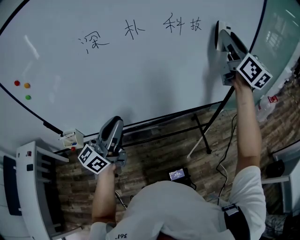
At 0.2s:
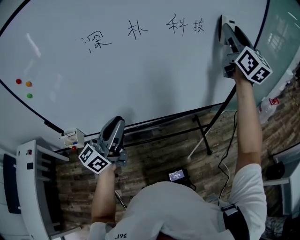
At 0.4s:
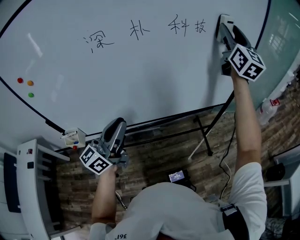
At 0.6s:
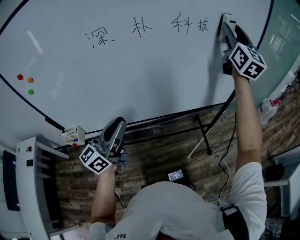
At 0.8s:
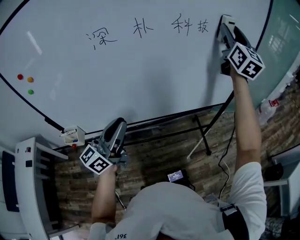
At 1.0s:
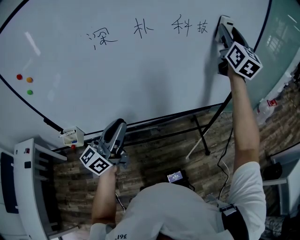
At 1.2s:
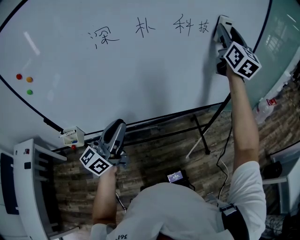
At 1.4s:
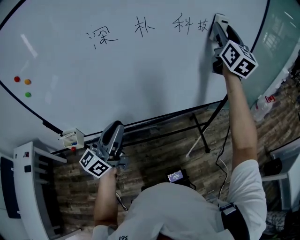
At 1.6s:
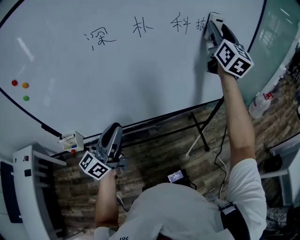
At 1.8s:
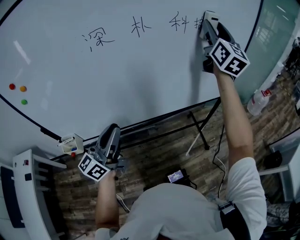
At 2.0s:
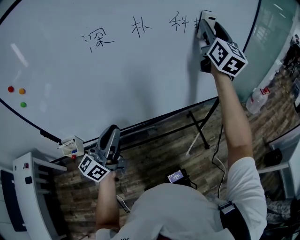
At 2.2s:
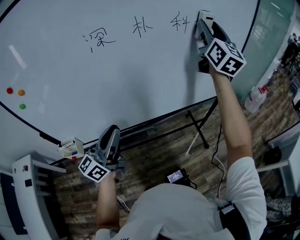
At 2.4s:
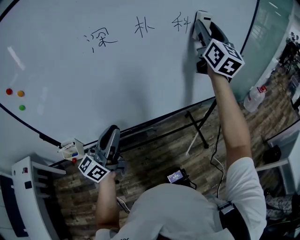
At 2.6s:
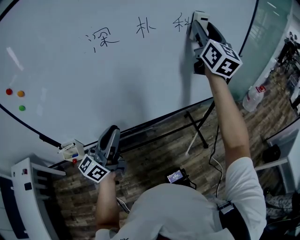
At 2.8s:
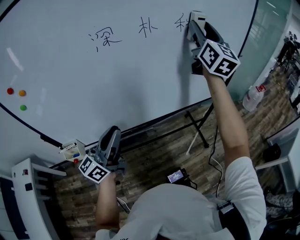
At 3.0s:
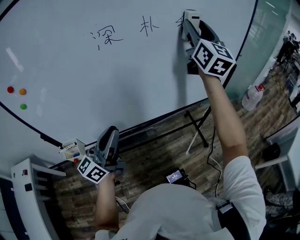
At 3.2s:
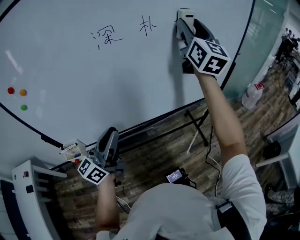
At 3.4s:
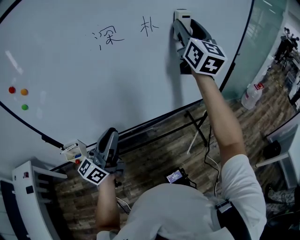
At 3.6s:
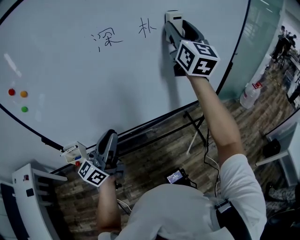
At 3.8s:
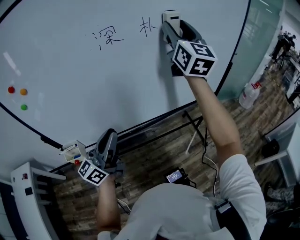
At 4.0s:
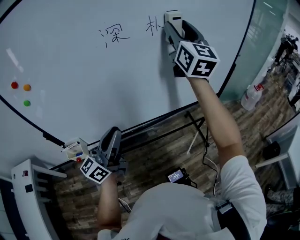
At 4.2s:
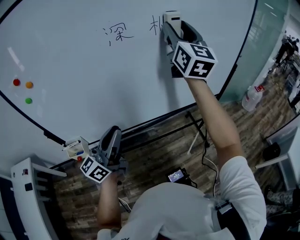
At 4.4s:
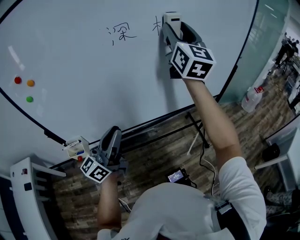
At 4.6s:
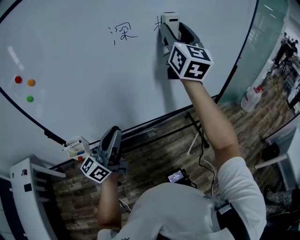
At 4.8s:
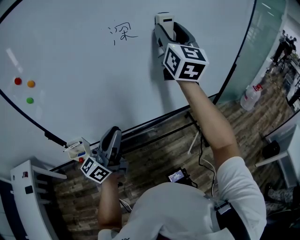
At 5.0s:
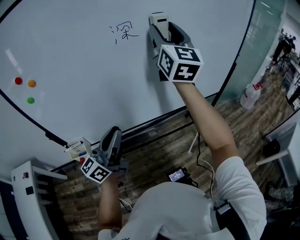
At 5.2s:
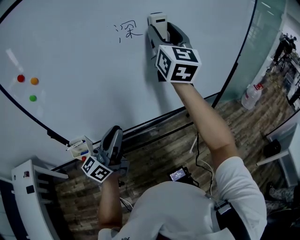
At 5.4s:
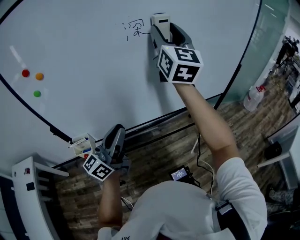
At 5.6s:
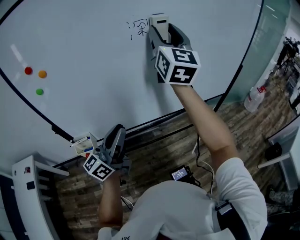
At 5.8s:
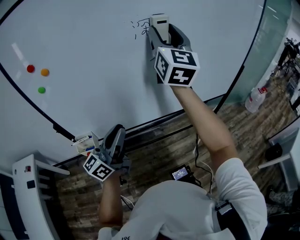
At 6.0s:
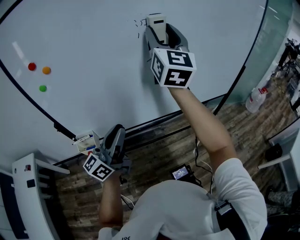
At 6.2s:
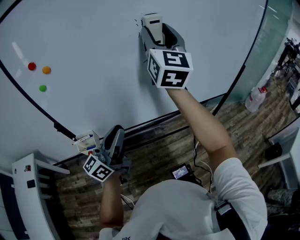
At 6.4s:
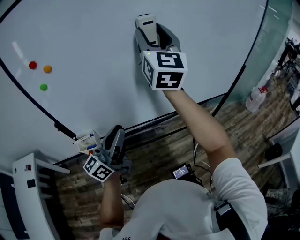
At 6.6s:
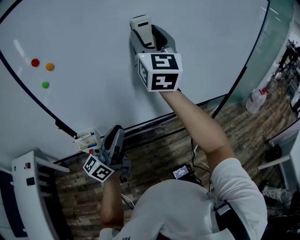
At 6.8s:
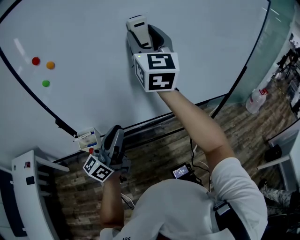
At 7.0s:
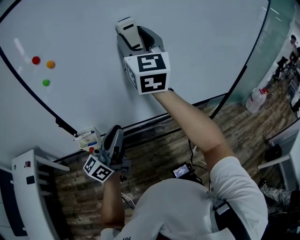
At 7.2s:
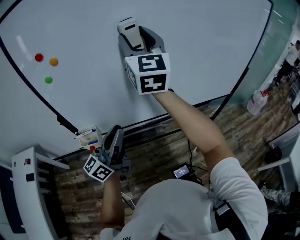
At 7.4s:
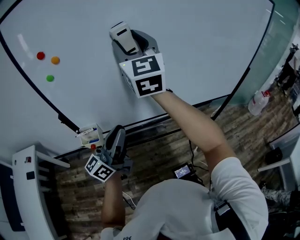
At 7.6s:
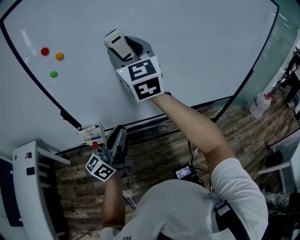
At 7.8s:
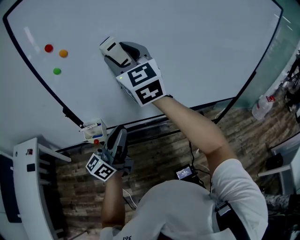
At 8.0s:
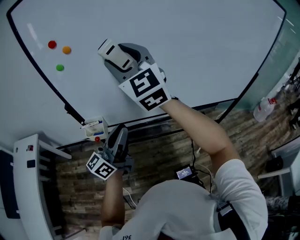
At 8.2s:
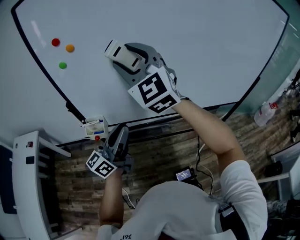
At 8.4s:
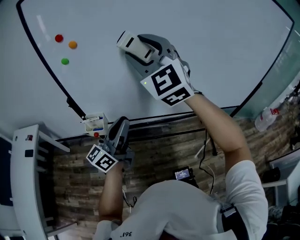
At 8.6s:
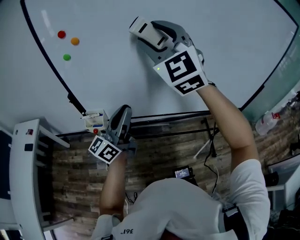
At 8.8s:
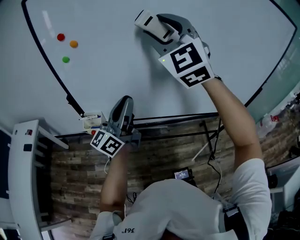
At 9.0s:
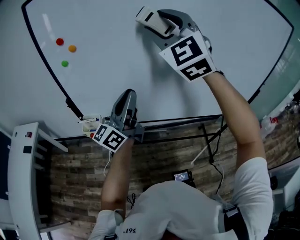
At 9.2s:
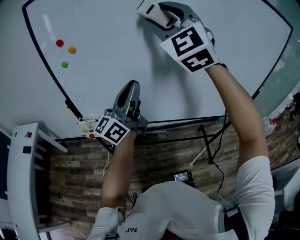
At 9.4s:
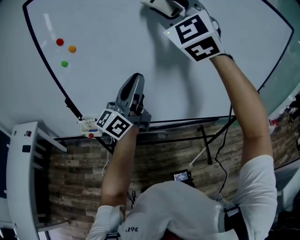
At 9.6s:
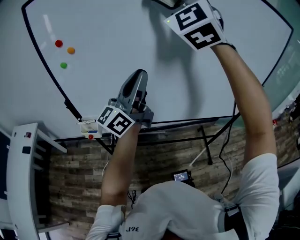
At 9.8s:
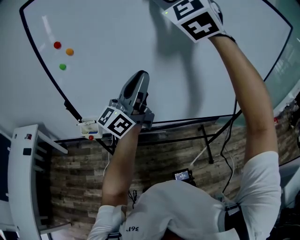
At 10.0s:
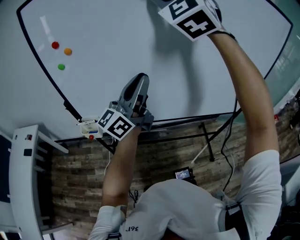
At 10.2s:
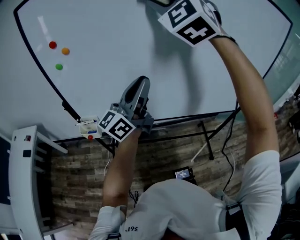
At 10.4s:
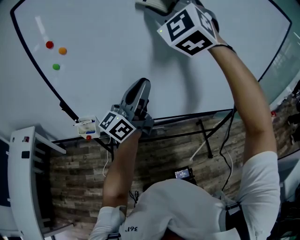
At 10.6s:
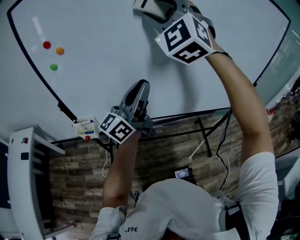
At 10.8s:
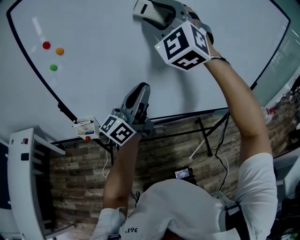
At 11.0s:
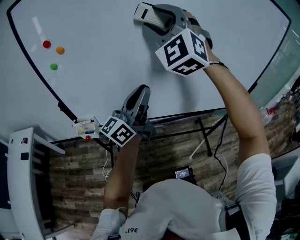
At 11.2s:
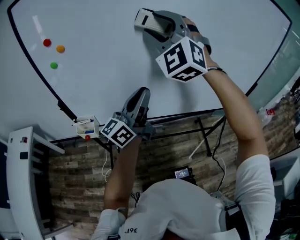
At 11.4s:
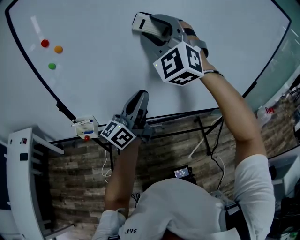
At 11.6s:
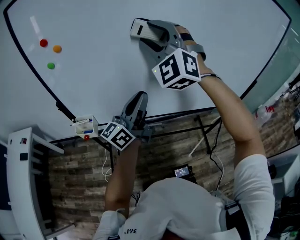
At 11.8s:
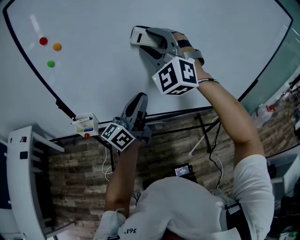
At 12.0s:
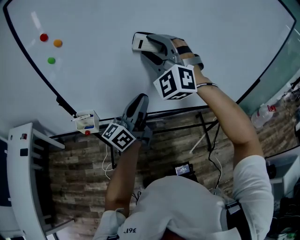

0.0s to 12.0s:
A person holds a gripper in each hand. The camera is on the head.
0.0s to 1.6s: The right gripper travels to the left by approximately 5 cm.
1.6s to 3.0s: The right gripper shifts approximately 10 cm to the left and backward. The left gripper heads to the left, covering some 5 cm.
3.0s to 4.4s: The right gripper goes approximately 10 cm to the left.
4.4s to 6.0s: The left gripper travels to the left by about 5 cm. Meanwhile the right gripper heads to the left and backward, covering some 15 cm.
6.0s to 7.6s: The right gripper shifts about 15 cm to the left, and swivels roughly 30 degrees.
7.6s to 9.0s: The right gripper heads upward and to the right, covering about 10 cm, and rotates about 40 degrees. The left gripper travels upward, to the right and forward by approximately 15 cm.
9.0s to 10.4s: The left gripper shifts roughly 5 cm to the right.
10.4s to 12.0s: The left gripper heads downward, covering some 10 cm. Meanwhile the right gripper travels downward by roughly 20 cm.

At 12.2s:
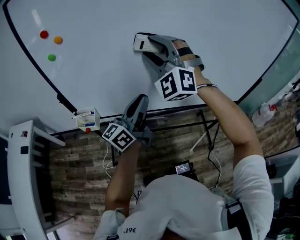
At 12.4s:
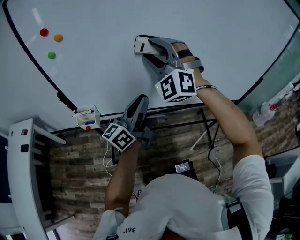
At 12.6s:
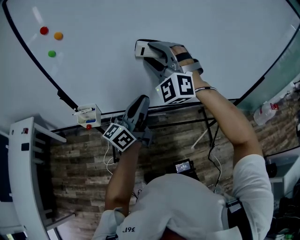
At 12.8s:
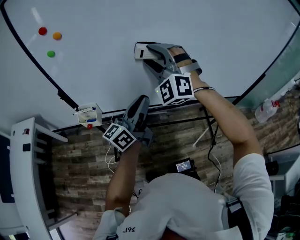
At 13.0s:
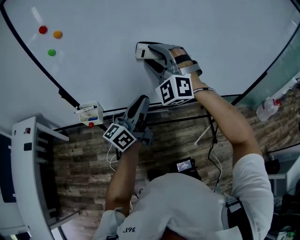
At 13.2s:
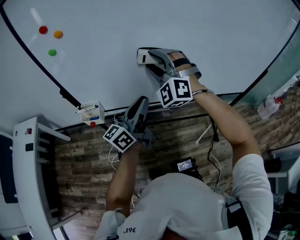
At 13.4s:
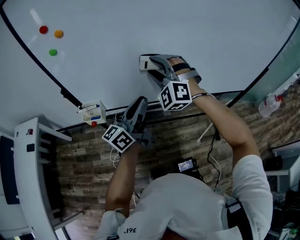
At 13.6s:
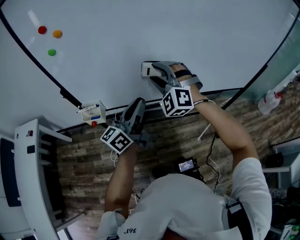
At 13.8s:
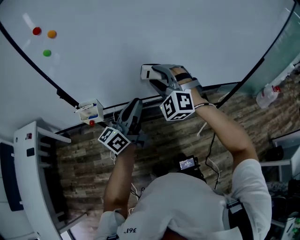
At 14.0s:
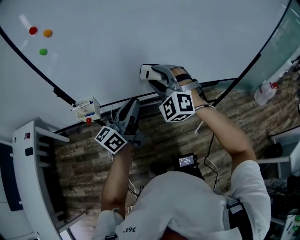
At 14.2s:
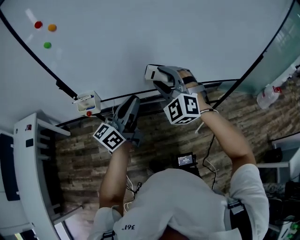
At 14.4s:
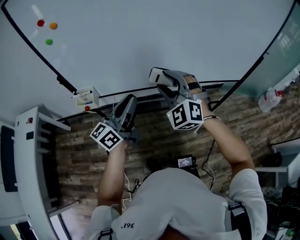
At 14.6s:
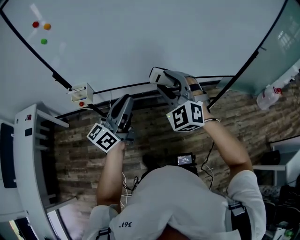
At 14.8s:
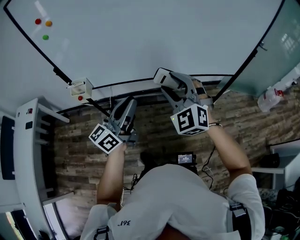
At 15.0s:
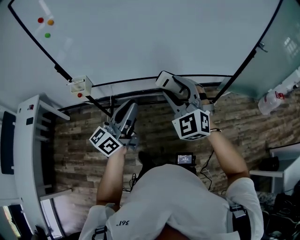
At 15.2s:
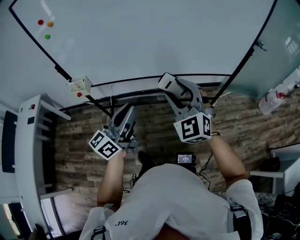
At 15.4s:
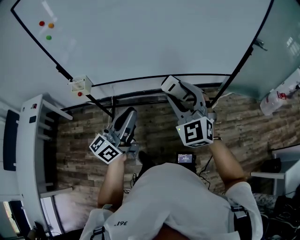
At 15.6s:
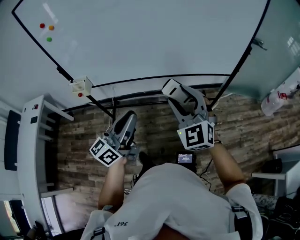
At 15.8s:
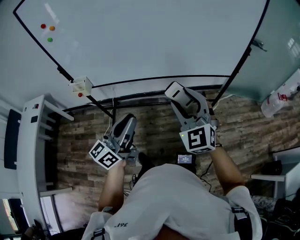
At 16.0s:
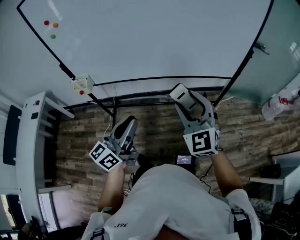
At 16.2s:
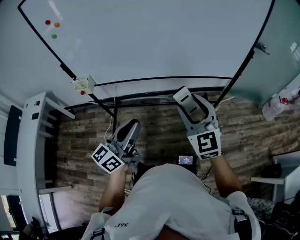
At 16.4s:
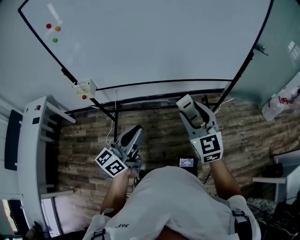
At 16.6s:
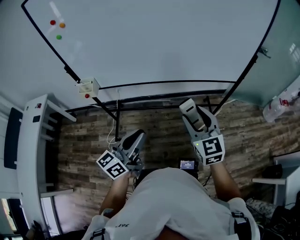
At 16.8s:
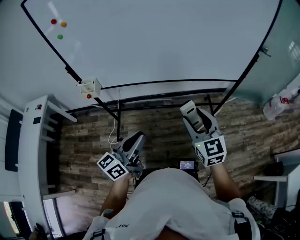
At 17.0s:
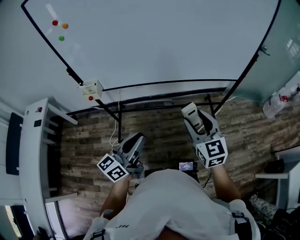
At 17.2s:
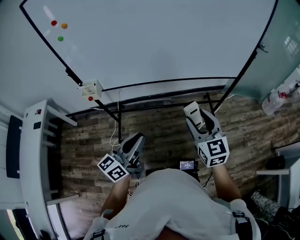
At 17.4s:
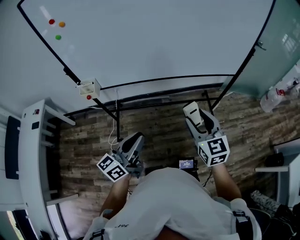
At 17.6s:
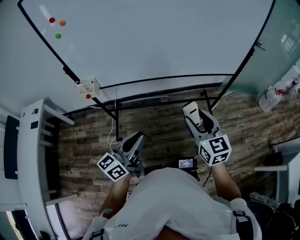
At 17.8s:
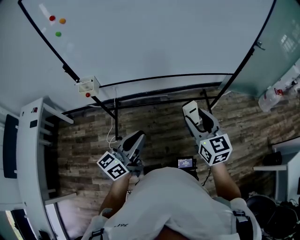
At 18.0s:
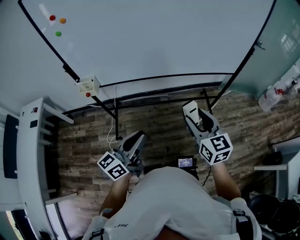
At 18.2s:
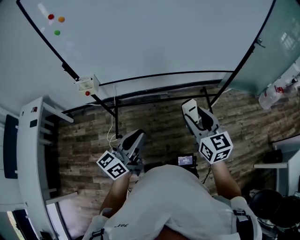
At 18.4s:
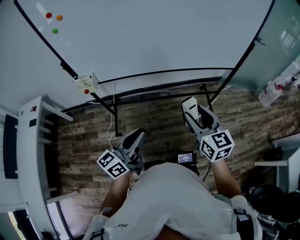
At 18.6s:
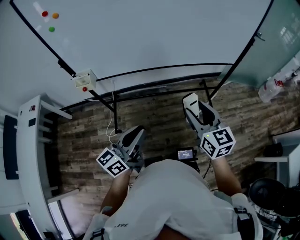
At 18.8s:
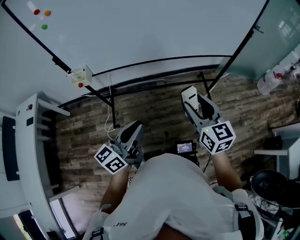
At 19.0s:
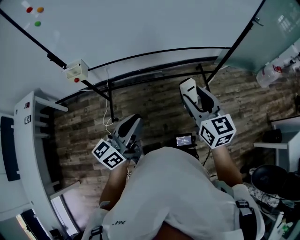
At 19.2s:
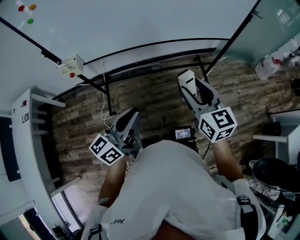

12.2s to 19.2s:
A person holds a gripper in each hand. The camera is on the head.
12.2s to 13.6s: The left gripper moves some 5 cm. The right gripper travels downward by about 15 cm.
13.6s to 15.0s: The left gripper goes some 20 cm backward and to the right. Meanwhile the right gripper moves to the right and backward, roughly 30 cm, and changes its angle by approximately 20 degrees.
15.0s to 16.4s: The right gripper is displaced to the right and backward by roughly 10 cm, and rotates some 30 degrees. Meanwhile the left gripper heads backward and to the right, covering approximately 10 cm.
16.4s to 17.8s: The left gripper shifts about 5 cm to the left. The right gripper ends up about 5 cm from where it was.
17.8s to 19.2s: The grippers make only small movements.

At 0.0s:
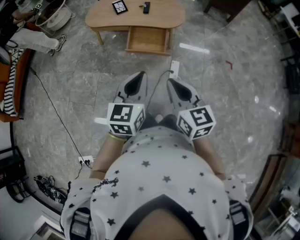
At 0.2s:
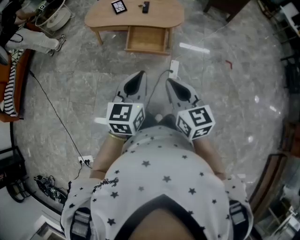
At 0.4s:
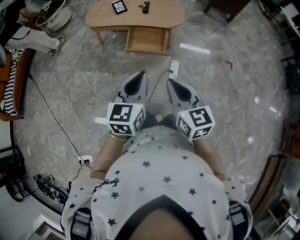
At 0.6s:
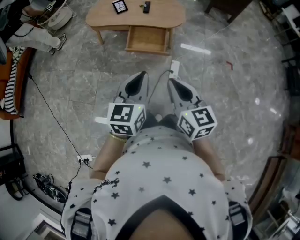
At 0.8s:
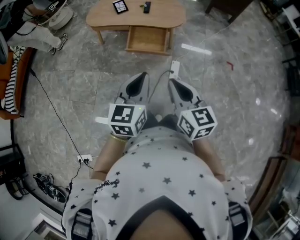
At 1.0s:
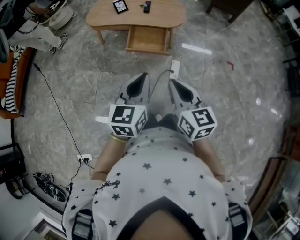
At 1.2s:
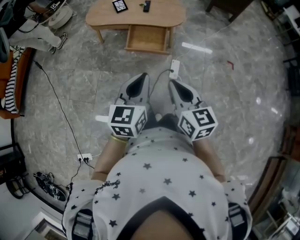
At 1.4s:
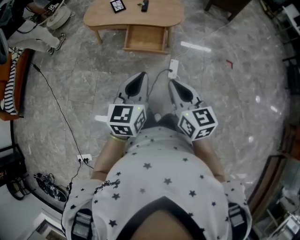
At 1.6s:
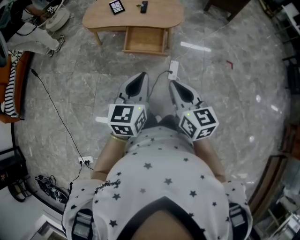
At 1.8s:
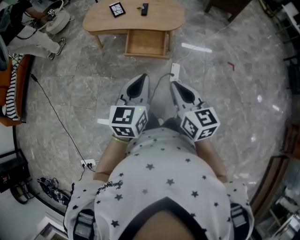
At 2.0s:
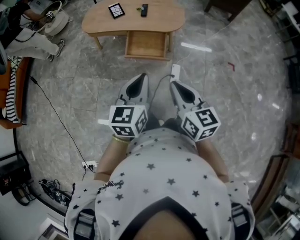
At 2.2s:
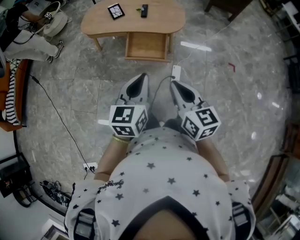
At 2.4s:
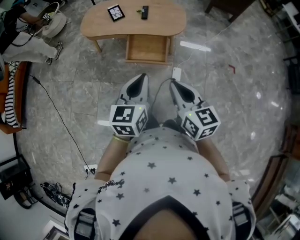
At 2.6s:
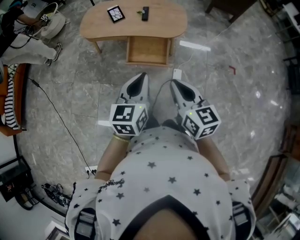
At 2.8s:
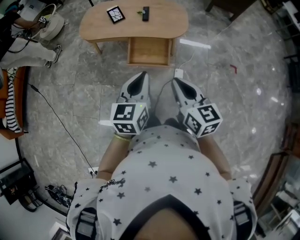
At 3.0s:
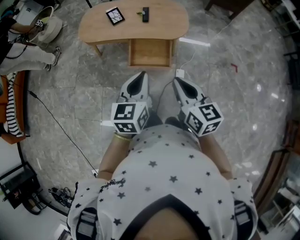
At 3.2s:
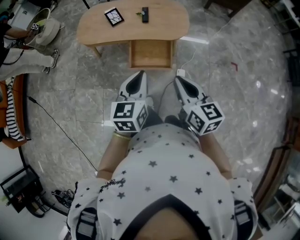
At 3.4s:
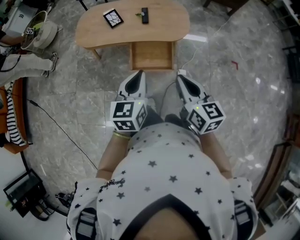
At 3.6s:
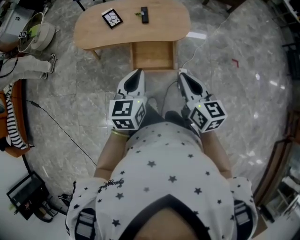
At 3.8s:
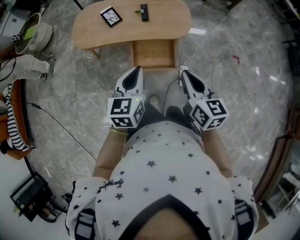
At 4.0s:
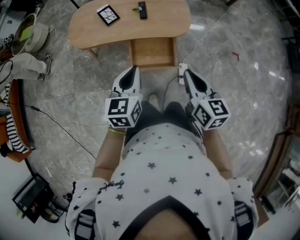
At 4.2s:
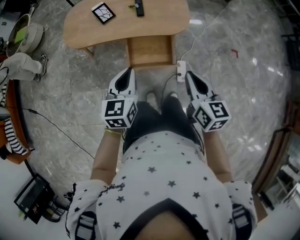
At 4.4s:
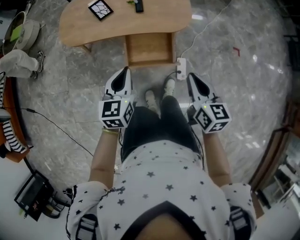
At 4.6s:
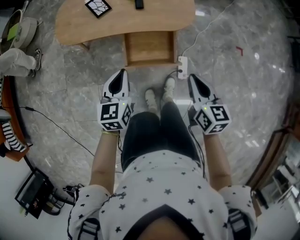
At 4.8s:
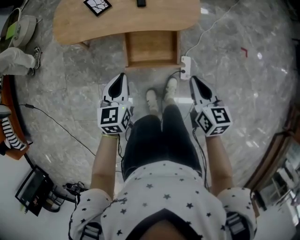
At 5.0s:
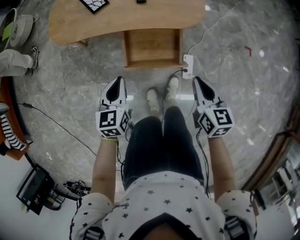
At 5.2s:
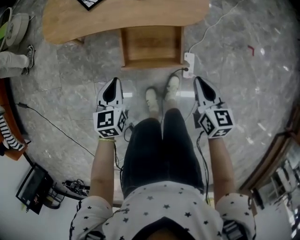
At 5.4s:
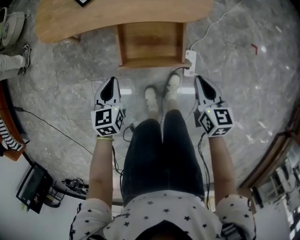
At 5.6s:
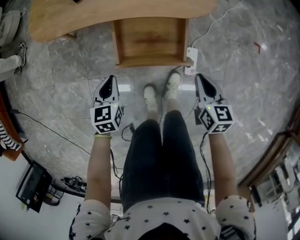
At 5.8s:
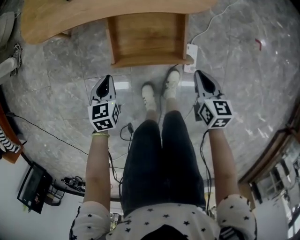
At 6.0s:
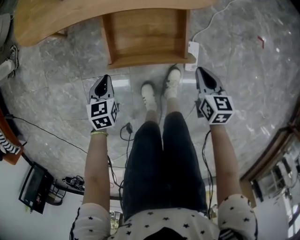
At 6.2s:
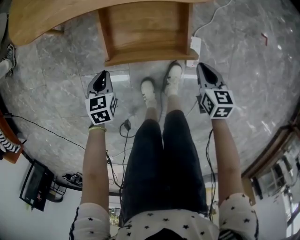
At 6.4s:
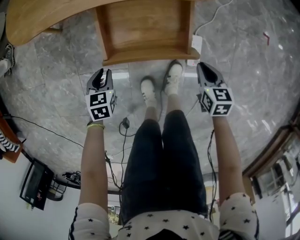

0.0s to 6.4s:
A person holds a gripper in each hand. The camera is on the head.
0.0s to 1.6s: The grippers make only small movements.
1.6s to 3.2s: The grippers both shift forward by about 20 cm.
3.2s to 4.8s: The right gripper shifts about 20 cm downward and forward. Meanwhile the left gripper heads downward, forward and to the left, covering some 25 cm.
4.8s to 6.4s: Both grippers move downward, approximately 35 cm. The right gripper rotates roughly 20 degrees. The left gripper turns by roughly 30 degrees.
